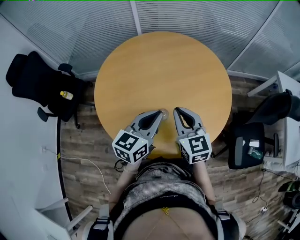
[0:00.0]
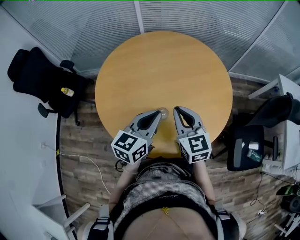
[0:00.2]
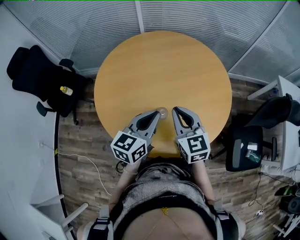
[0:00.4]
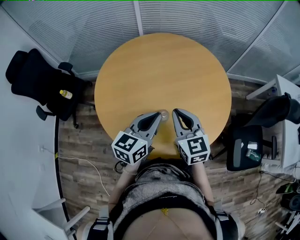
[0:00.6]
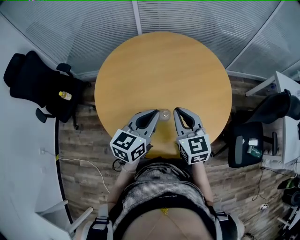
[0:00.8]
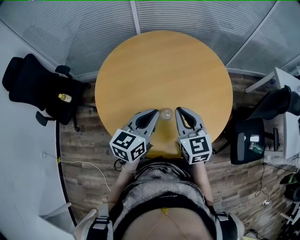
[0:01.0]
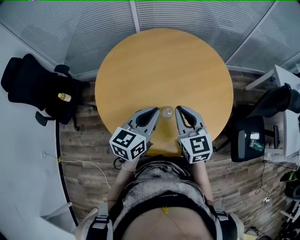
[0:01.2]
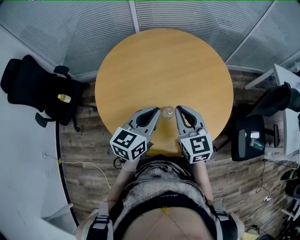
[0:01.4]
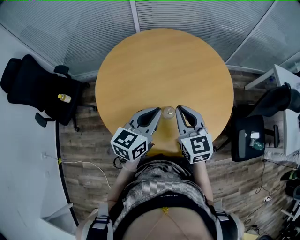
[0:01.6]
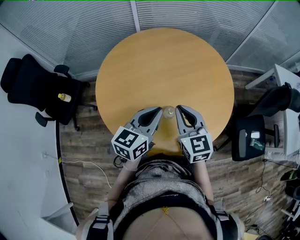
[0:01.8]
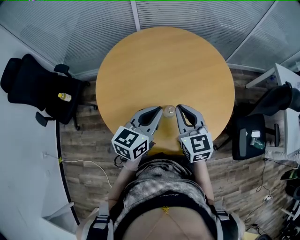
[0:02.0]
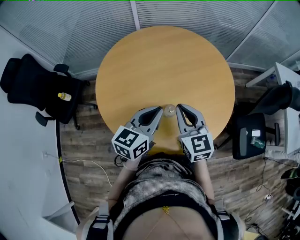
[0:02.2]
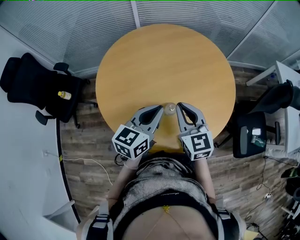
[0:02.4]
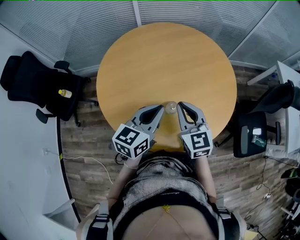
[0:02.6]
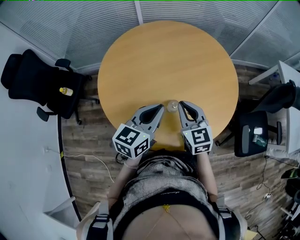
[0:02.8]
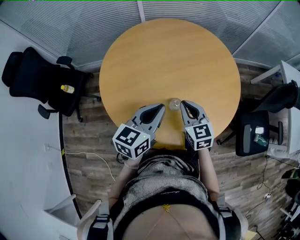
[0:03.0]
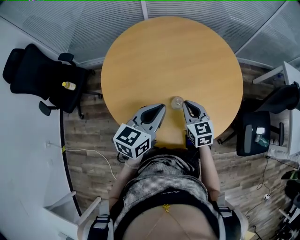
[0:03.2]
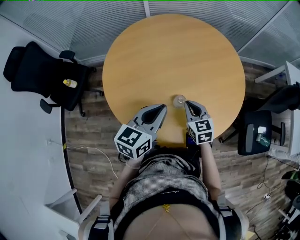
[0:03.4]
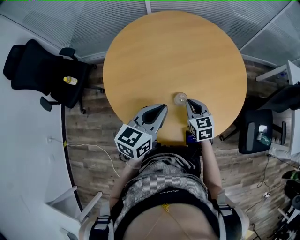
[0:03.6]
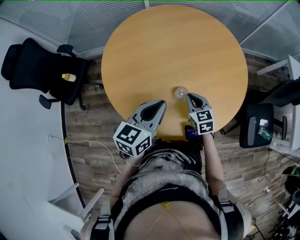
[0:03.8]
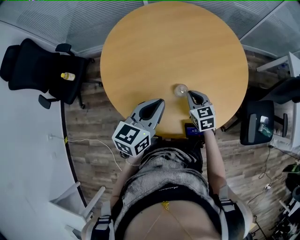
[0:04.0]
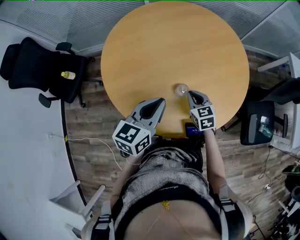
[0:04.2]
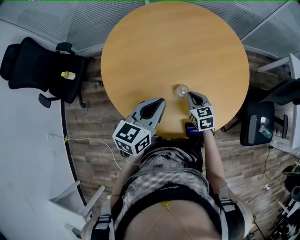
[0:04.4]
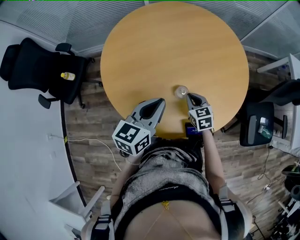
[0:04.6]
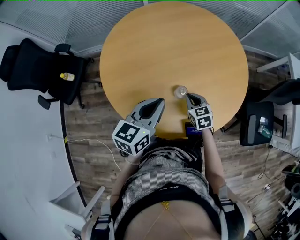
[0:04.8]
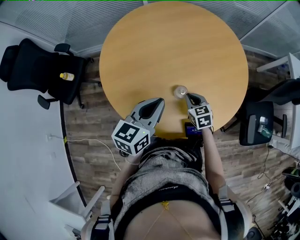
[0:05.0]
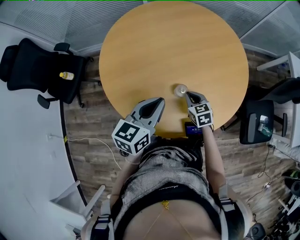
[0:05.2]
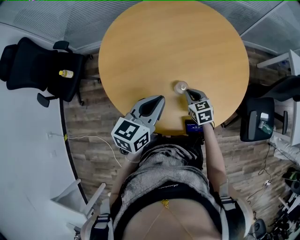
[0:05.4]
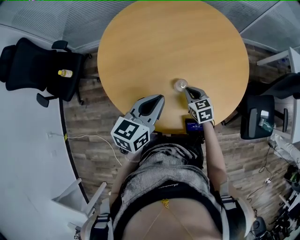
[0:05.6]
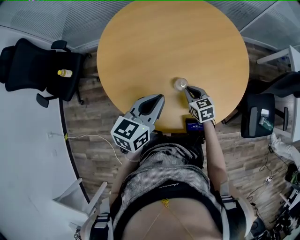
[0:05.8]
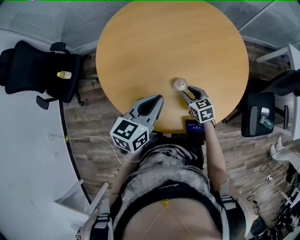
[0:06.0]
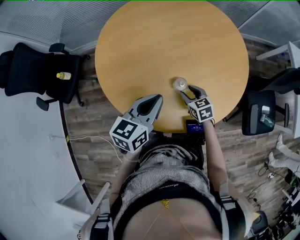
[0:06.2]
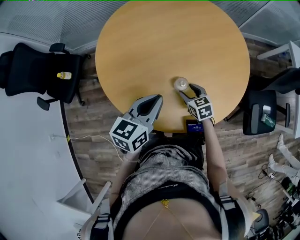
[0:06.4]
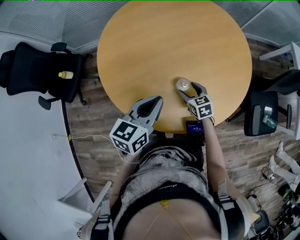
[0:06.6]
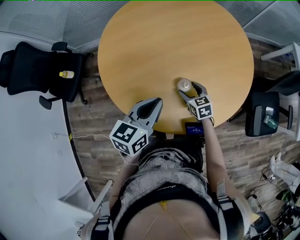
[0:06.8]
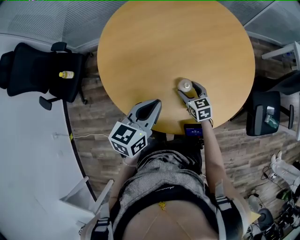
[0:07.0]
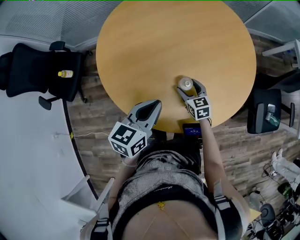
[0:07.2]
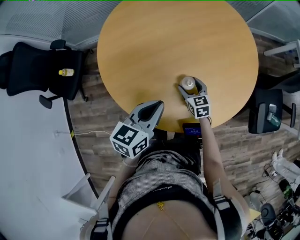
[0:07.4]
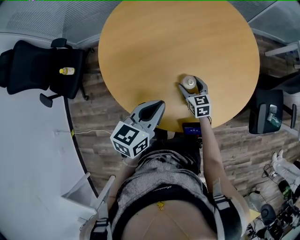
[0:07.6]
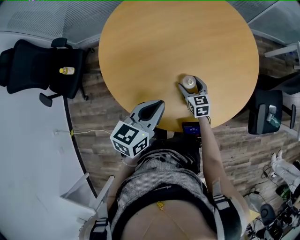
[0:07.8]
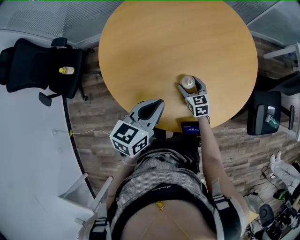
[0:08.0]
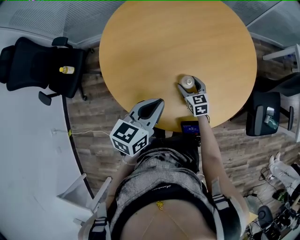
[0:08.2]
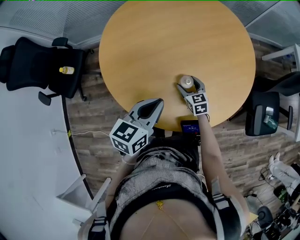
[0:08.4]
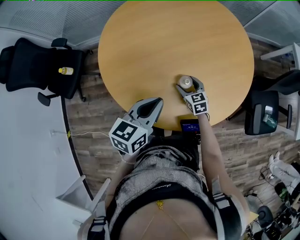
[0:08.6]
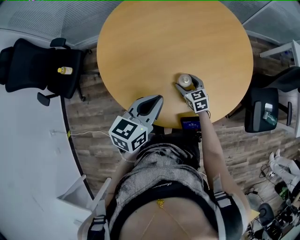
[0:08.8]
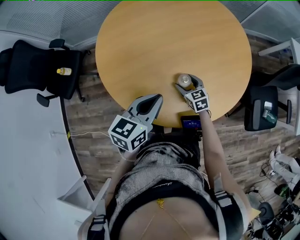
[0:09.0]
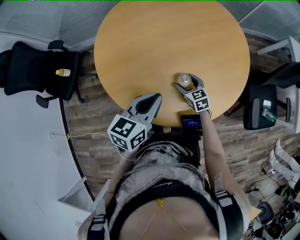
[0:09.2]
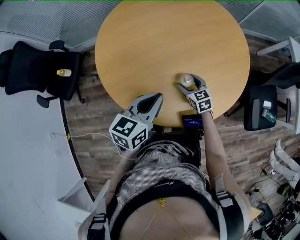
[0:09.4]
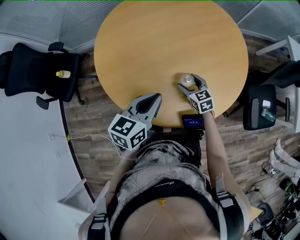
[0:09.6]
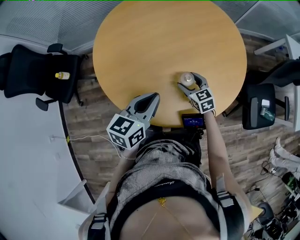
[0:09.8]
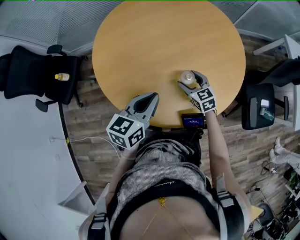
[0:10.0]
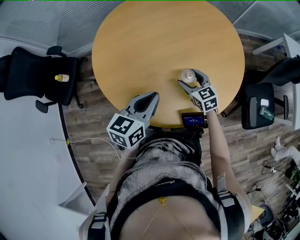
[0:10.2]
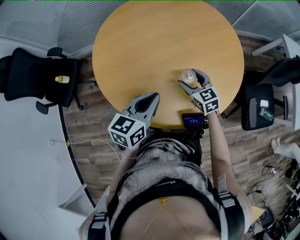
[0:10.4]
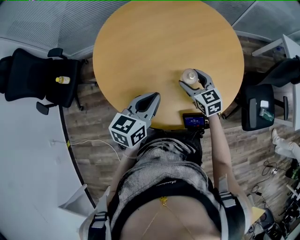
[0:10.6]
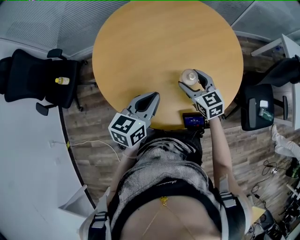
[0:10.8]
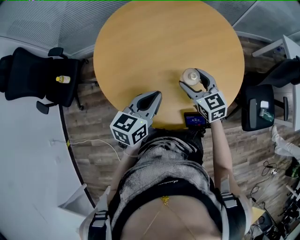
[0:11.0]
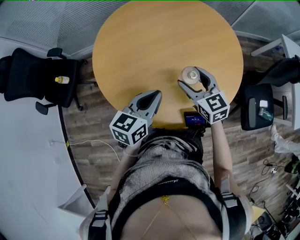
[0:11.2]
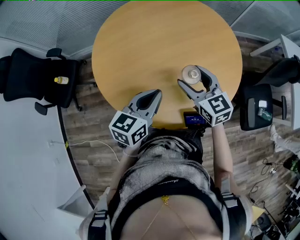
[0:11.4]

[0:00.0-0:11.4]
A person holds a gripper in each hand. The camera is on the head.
0:00.0 to 0:01.4: The left gripper moves to the left, some 5 cm.
0:01.4 to 0:02.8: The grippers make only small movements.
0:02.8 to 0:04.2: The right gripper travels downward by about 15 cm.
0:04.2 to 0:05.6: The grippers make only small movements.
0:05.6 to 0:07.2: The right gripper shifts by approximately 5 cm, and opens.
0:07.2 to 0:08.6: There are only small adjustments of the grippers.
0:08.6 to 0:10.0: The right gripper shifts about 5 cm upward.
0:10.0 to 0:11.4: The right gripper is displaced upward by roughly 15 cm.

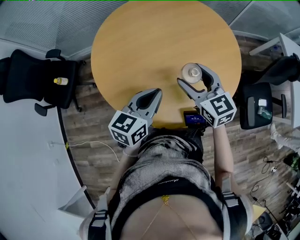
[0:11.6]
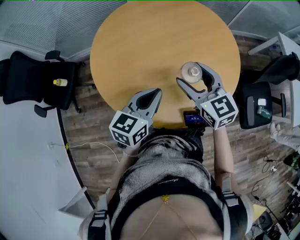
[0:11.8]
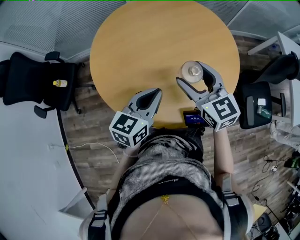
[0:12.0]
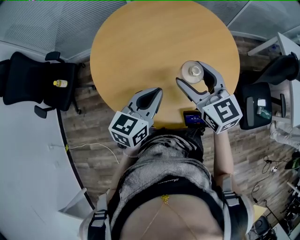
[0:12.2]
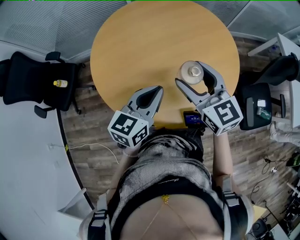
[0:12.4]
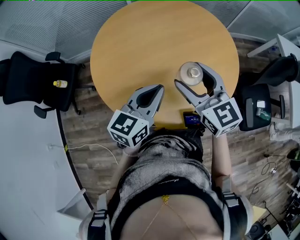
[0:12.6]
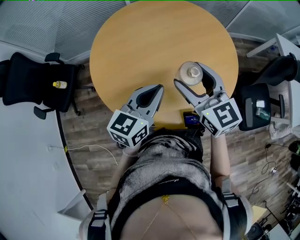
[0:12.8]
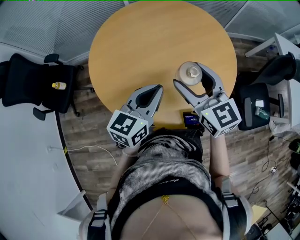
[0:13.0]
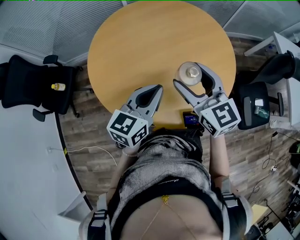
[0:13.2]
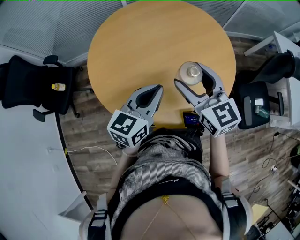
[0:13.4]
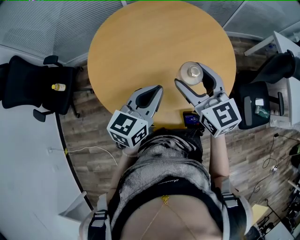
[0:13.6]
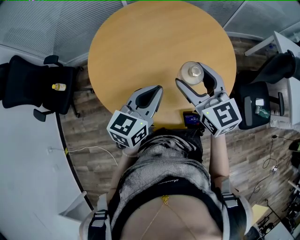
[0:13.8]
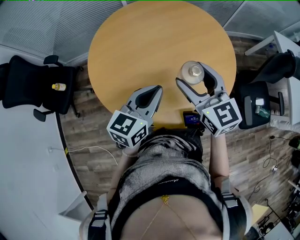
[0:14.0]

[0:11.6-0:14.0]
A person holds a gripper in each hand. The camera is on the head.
0:11.6 to 0:12.8: The right gripper shifts some 5 cm upward.
0:12.8 to 0:14.0: The grippers stay close to where they were, moving slightly.

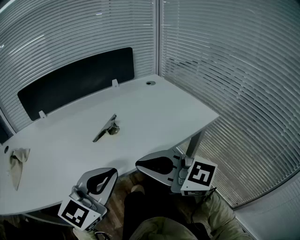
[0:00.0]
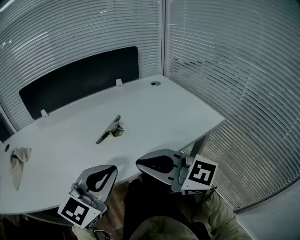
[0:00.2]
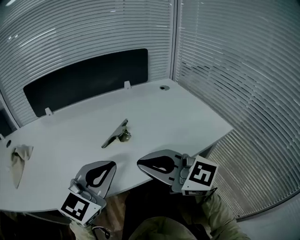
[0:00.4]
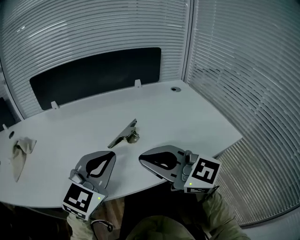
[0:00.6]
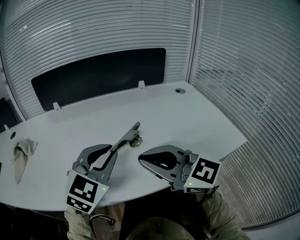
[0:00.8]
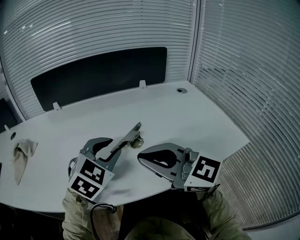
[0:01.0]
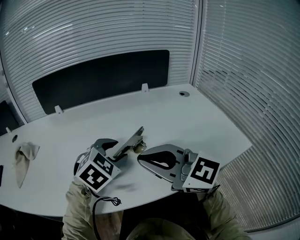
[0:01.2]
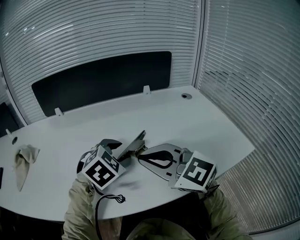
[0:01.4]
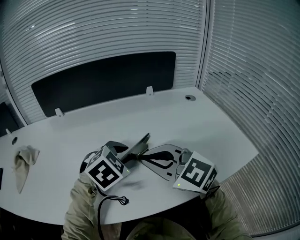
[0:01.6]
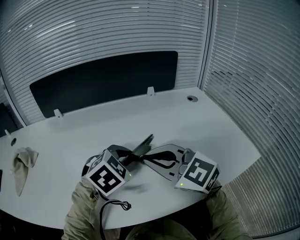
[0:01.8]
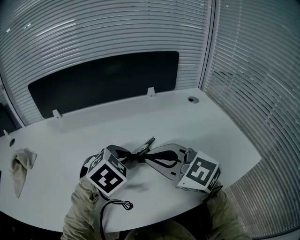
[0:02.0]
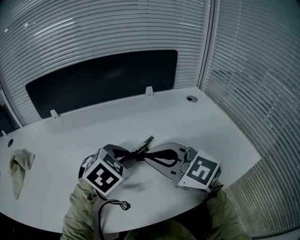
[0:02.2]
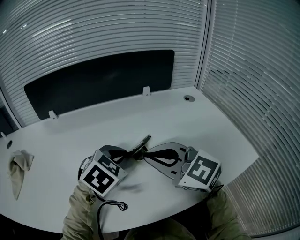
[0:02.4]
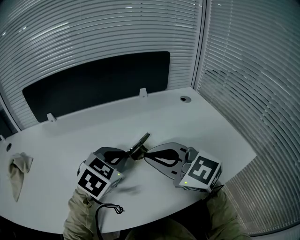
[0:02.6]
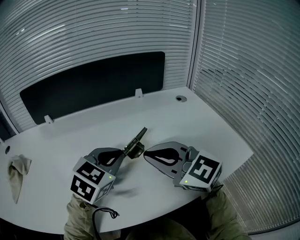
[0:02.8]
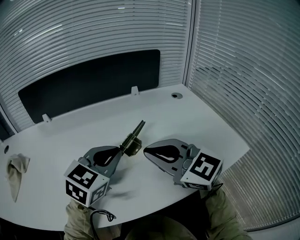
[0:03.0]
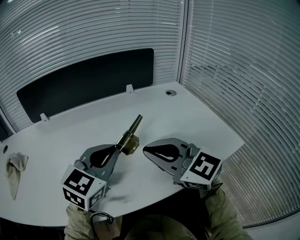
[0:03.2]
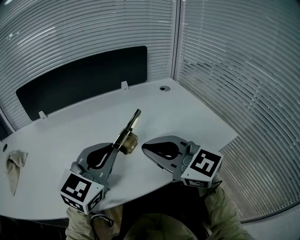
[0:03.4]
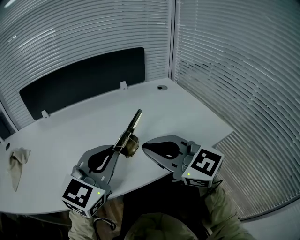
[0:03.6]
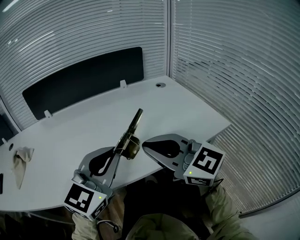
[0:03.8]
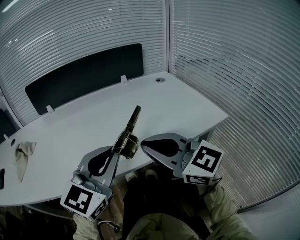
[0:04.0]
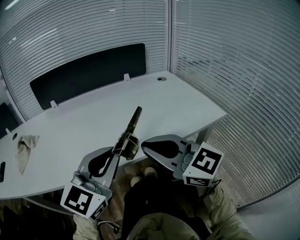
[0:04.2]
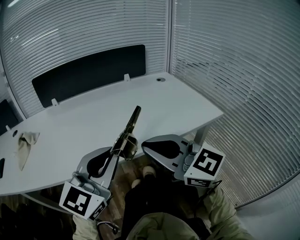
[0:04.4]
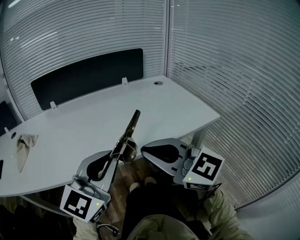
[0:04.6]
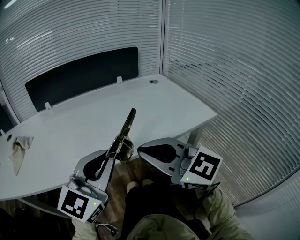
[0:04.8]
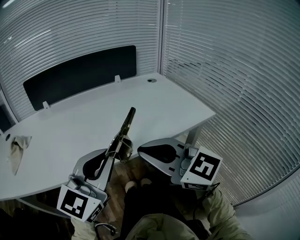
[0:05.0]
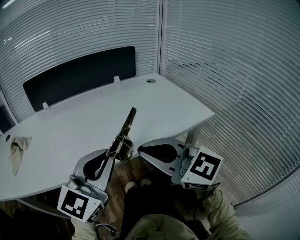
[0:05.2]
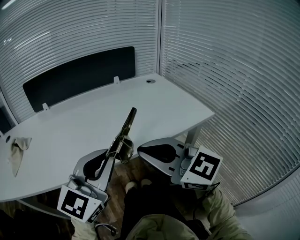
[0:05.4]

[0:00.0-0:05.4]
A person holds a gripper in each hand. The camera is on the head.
0:00.0 to 0:01.4: The right gripper shifts approximately 15 cm forward, while the left gripper goes about 25 cm forward and downward, points its fingers approximately 40 degrees further downward, and opens up.
0:01.4 to 0:02.8: The right gripper travels to the right by approximately 5 cm. The left gripper shifts by approximately 5 cm, rotates some 20 degrees, and closes up.
0:02.8 to 0:04.0: The left gripper goes approximately 20 cm backward and upward, and changes its angle by some 30 degrees. Meanwhile the right gripper moves backward, some 15 cm.
0:04.0 to 0:05.4: Both grippers travel together backward, roughly 5 cm.

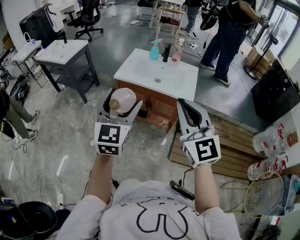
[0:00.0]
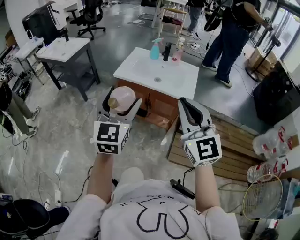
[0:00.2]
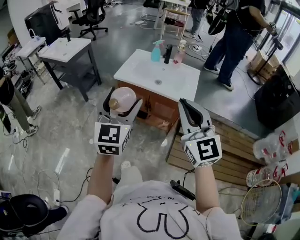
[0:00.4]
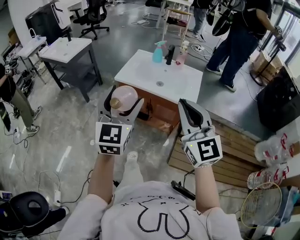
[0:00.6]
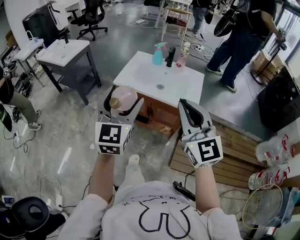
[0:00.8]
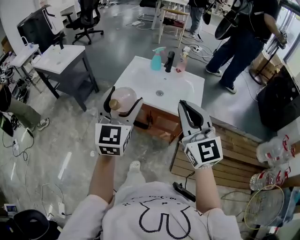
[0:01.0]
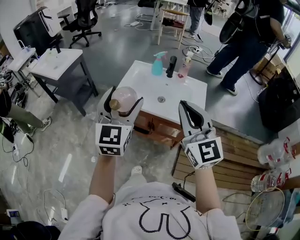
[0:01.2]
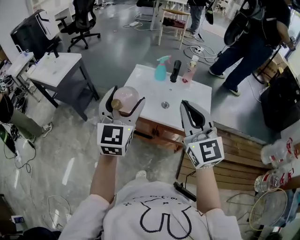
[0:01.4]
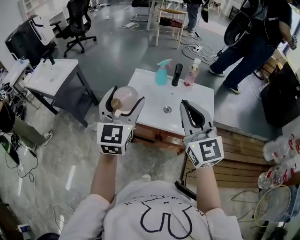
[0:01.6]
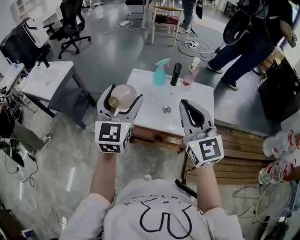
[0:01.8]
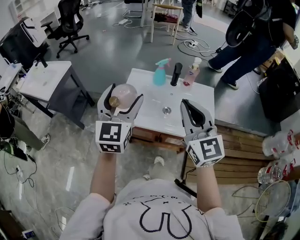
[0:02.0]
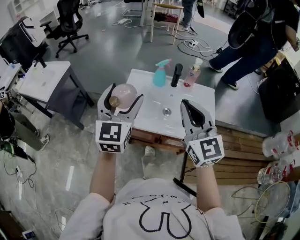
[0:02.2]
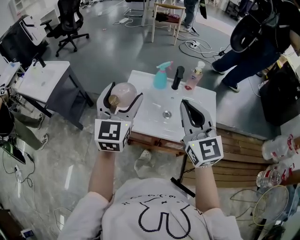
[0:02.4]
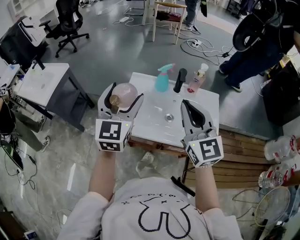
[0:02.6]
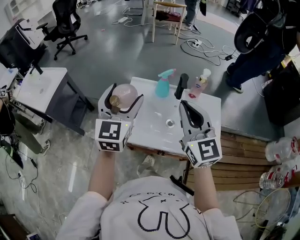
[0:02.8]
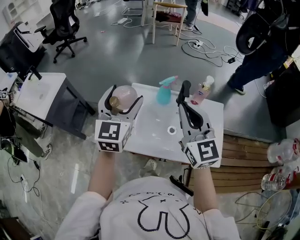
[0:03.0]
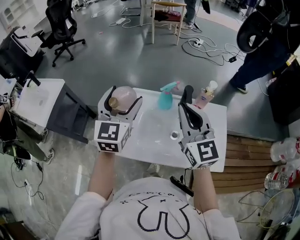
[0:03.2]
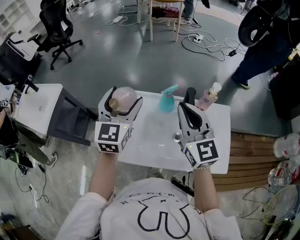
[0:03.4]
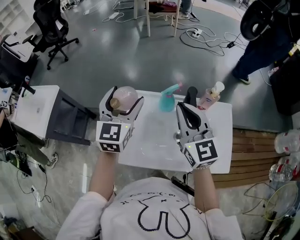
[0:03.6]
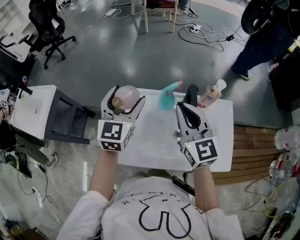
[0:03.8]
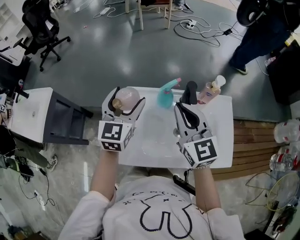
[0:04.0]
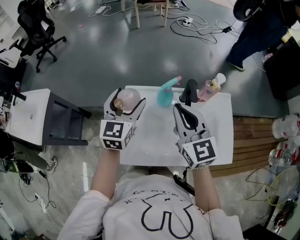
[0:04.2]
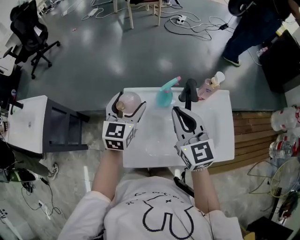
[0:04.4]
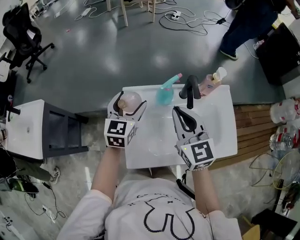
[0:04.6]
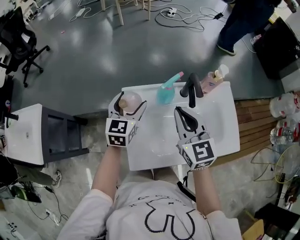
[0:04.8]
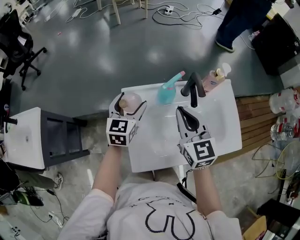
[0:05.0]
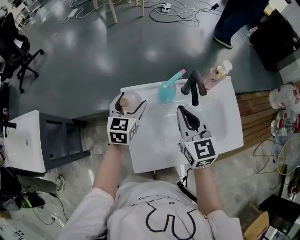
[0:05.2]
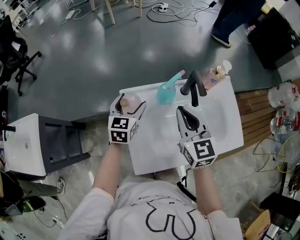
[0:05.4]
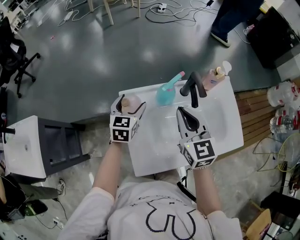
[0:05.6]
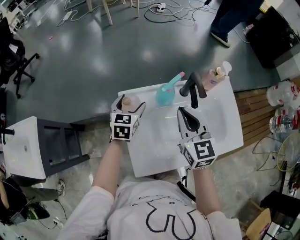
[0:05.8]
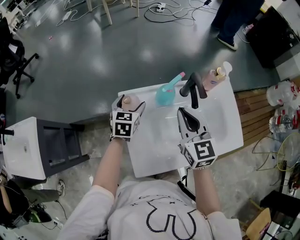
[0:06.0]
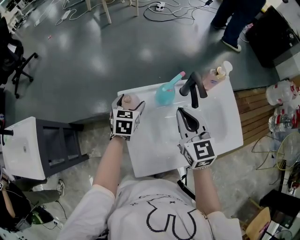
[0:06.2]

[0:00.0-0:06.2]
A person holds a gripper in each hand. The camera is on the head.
0:00.0 to 0:01.6: The two grippers go roughly 30 cm forward.
0:01.6 to 0:03.2: The two grippers go approximately 25 cm forward.
0:03.2 to 0:04.6: The left gripper heads downward and forward, covering roughly 20 cm, and changes its angle by some 20 degrees, while the right gripper is displaced downward and forward by roughly 10 cm.
0:04.6 to 0:06.2: The right gripper travels downward by approximately 5 cm. Meanwhile the left gripper is displaced downward by some 15 cm, and rotates roughly 20 degrees.
